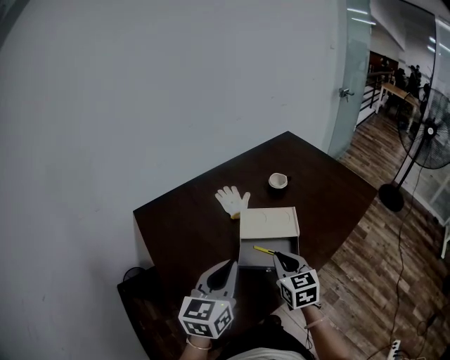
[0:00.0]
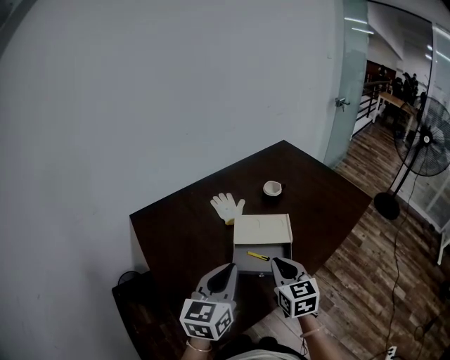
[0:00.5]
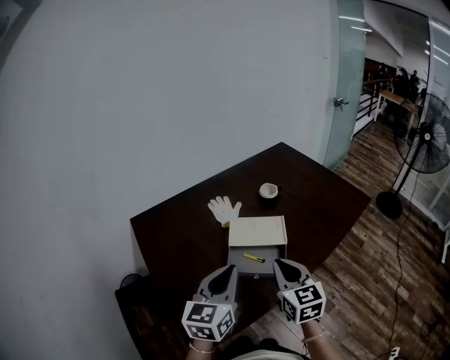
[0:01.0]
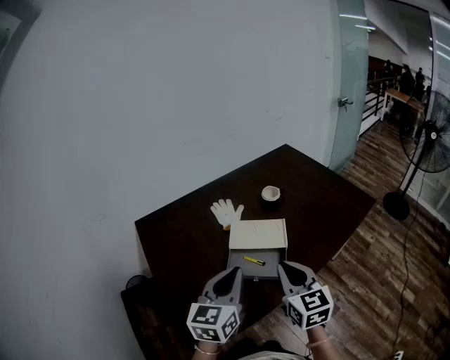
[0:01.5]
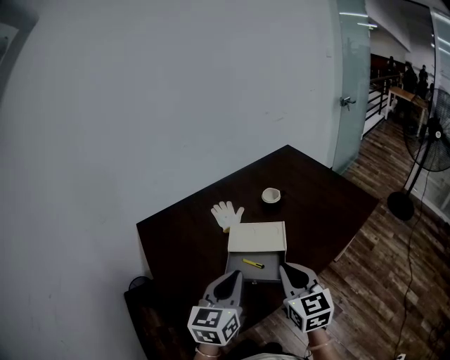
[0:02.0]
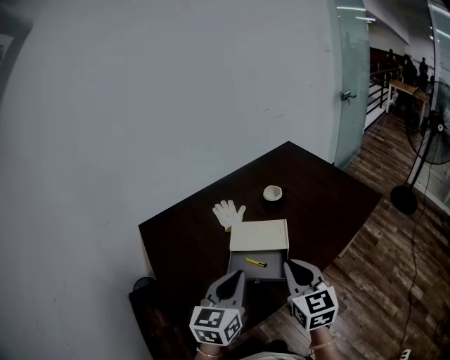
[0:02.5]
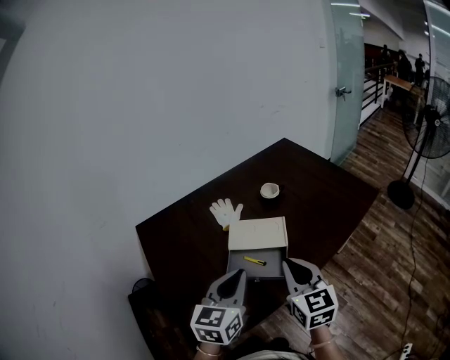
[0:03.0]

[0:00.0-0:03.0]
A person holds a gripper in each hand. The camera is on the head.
0:00.0 to 0:01.5: The left gripper moves to the right, approximately 10 cm. Meanwhile the right gripper moves upward, to the right and backward, about 15 cm.
0:01.5 to 0:03.0: The grippers move only a little.

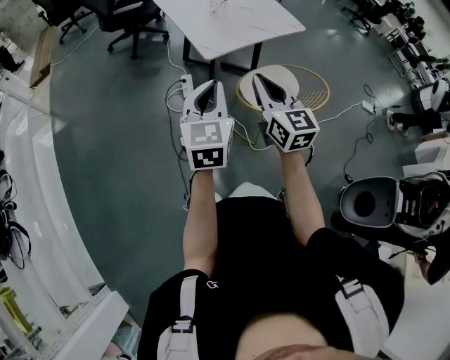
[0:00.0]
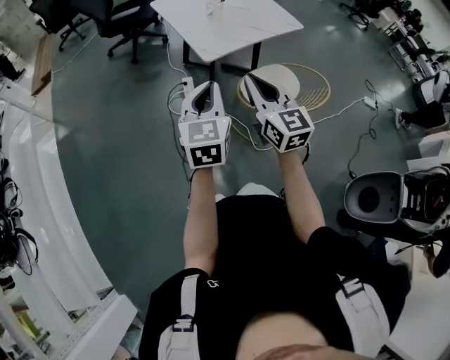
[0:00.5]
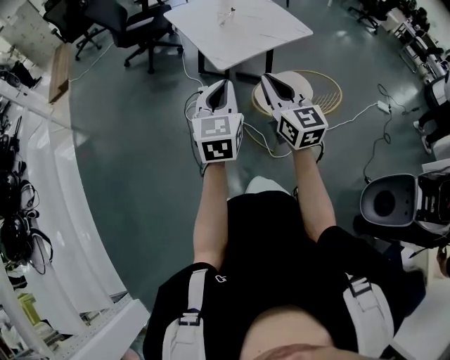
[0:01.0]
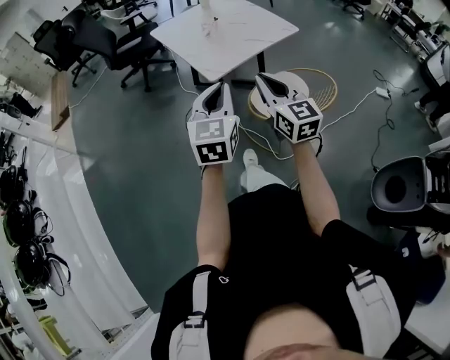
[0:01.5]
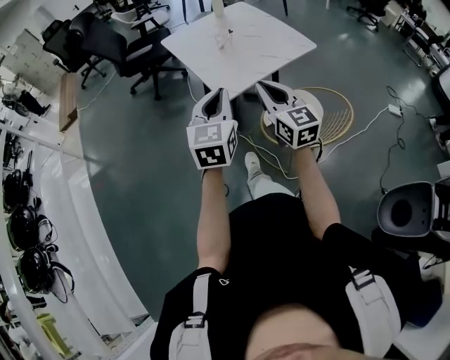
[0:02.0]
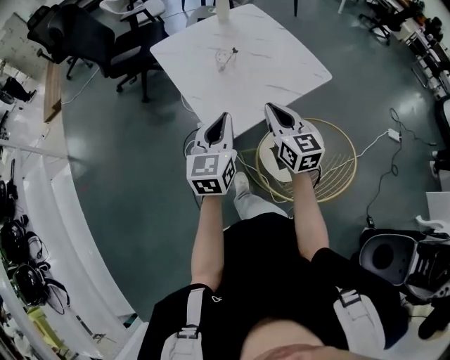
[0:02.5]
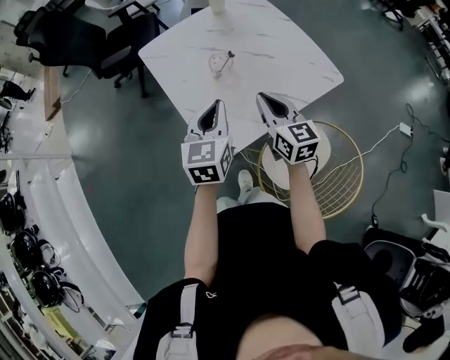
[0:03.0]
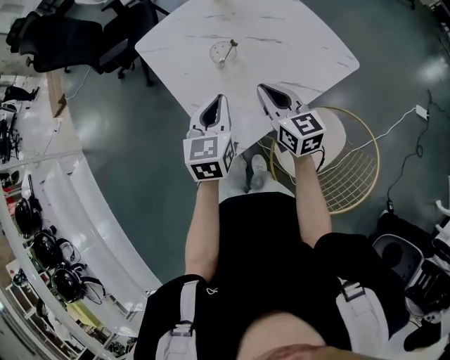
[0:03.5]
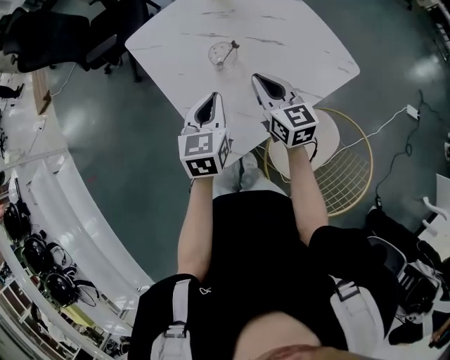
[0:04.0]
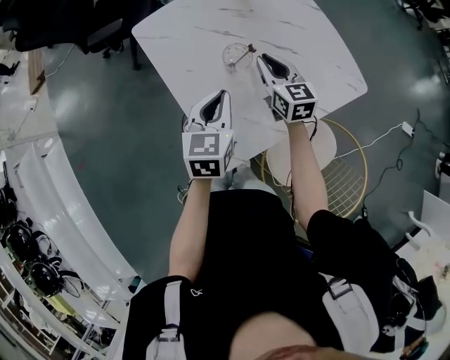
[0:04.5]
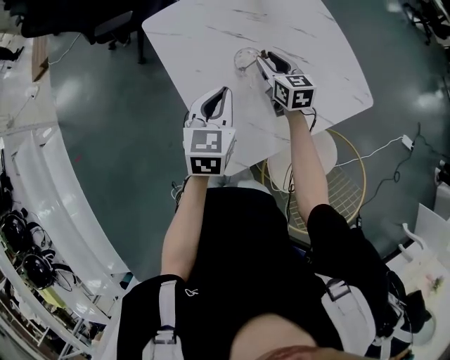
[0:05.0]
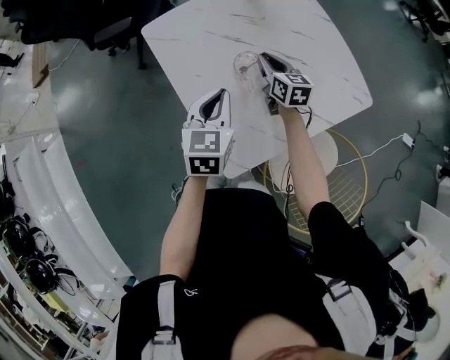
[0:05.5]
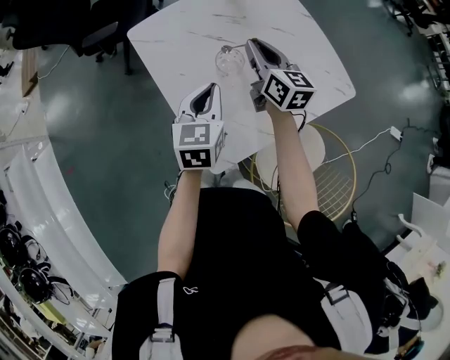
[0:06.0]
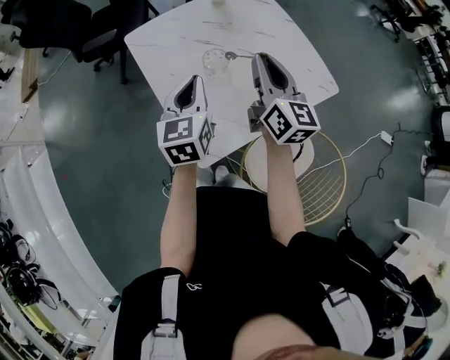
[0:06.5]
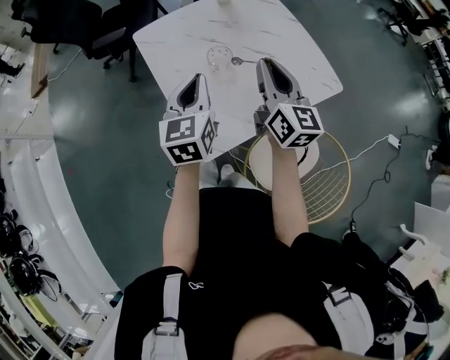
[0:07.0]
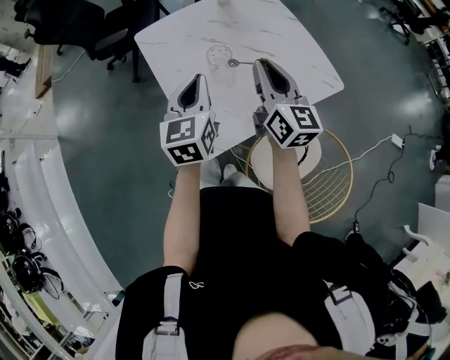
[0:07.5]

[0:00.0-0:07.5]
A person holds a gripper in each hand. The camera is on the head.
0:00.0 to 0:02.0: Both grippers travel together forward, about 15 cm.
0:02.0 to 0:04.0: The right gripper shifts roughly 40 cm forward, while the left gripper heads forward and downward, covering some 40 cm, and changes its angle by roughly 20 degrees.
0:04.0 to 0:05.5: The right gripper goes some 20 cm forward and downward, and opens, then closes again. Meanwhile the left gripper travels forward by about 5 cm.
0:05.5 to 0:07.5: The left gripper travels upward and backward by approximately 10 cm. Meanwhile the right gripper travels upward and backward by some 30 cm, and swivels about 30 degrees.

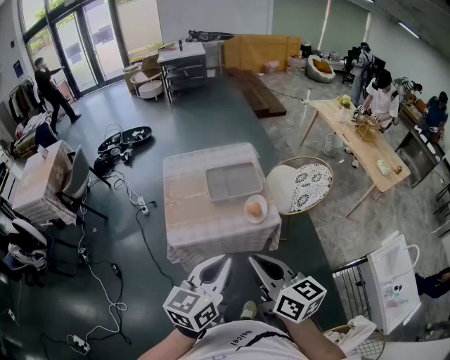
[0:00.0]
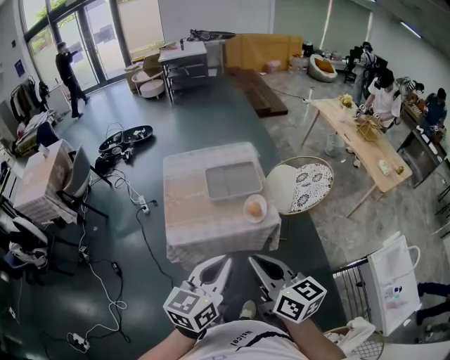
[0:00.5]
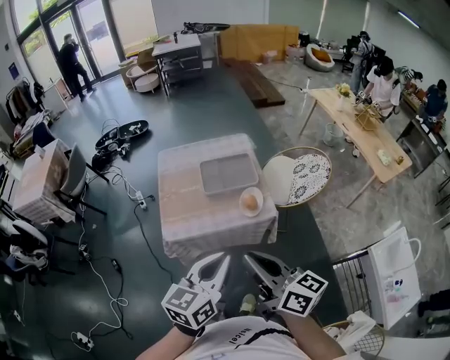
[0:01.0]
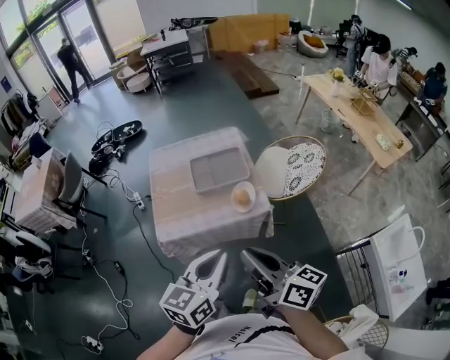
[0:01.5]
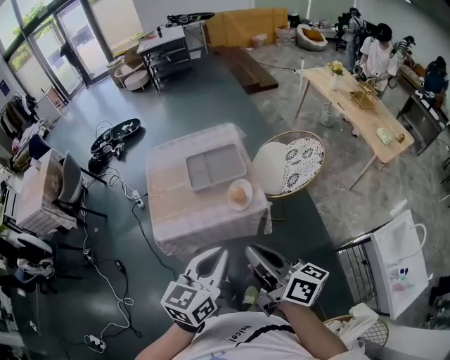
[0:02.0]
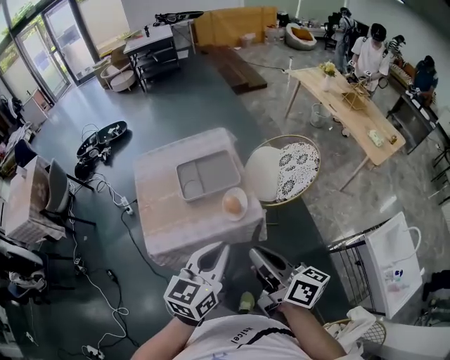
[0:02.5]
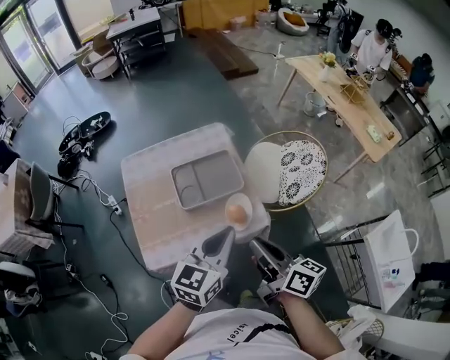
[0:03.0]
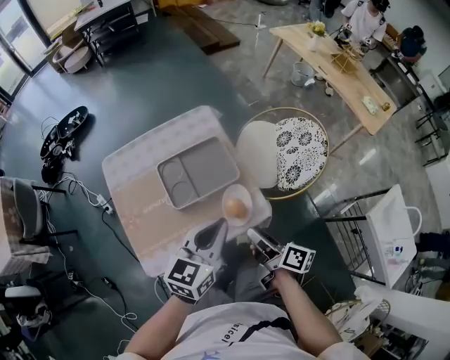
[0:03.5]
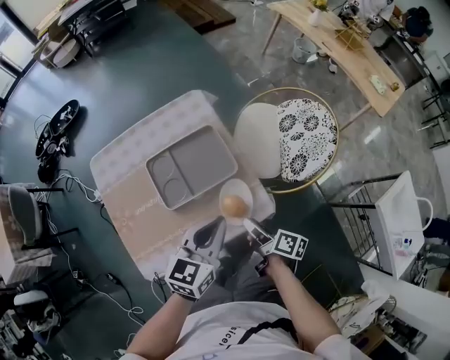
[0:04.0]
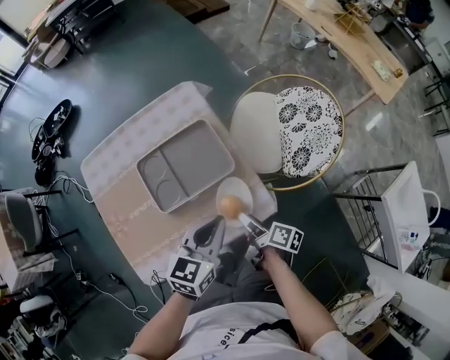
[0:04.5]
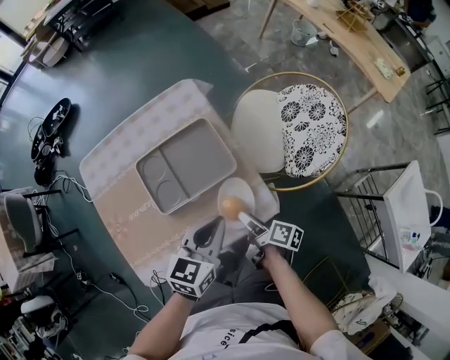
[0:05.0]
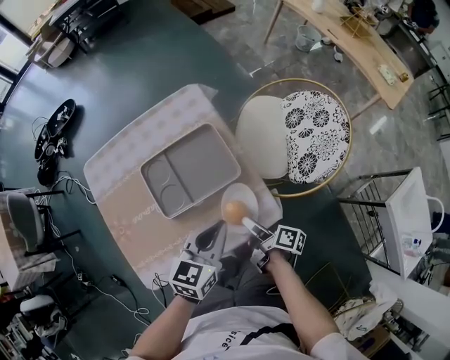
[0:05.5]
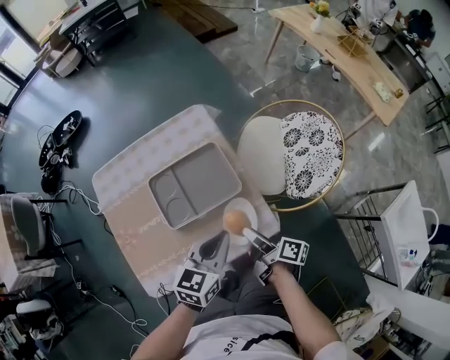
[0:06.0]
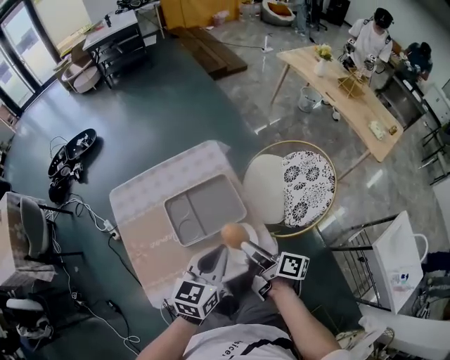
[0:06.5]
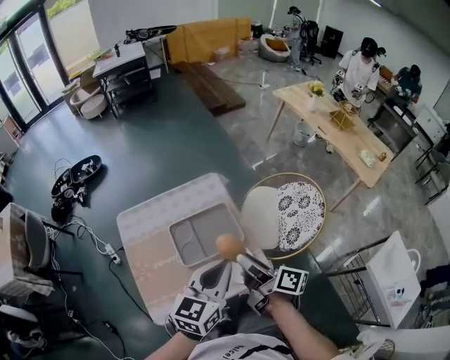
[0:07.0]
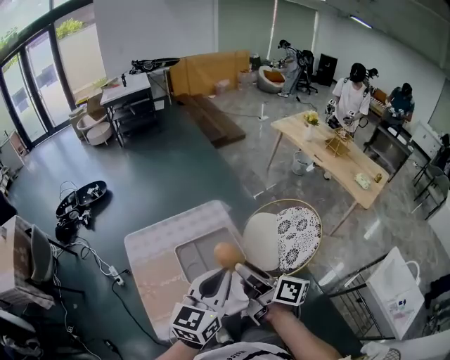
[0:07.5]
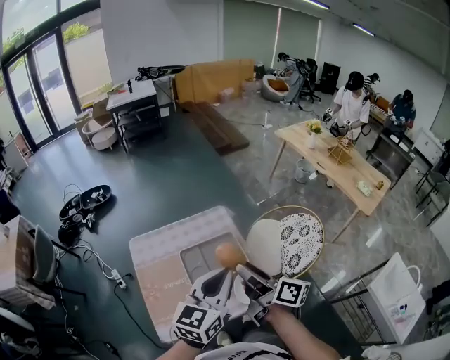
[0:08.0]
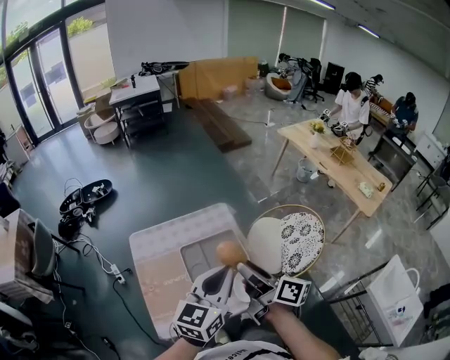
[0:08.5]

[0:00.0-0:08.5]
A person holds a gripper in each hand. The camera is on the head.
0:00.0 to 0:02.0: Both grippers travel together to the right, approximately 10 cm. The right gripper swivels about 30 degrees.
0:02.0 to 0:04.0: The right gripper goes about 40 cm downward and forward, swivels approximately 40 degrees, and opens. Meanwhile the left gripper shifts about 35 cm forward and downward.
0:04.0 to 0:06.5: The right gripper heads upward and forward, covering approximately 10 cm. Meanwhile the left gripper changes place by approximately 5 cm.
0:06.5 to 0:08.5: Both grippers move upward, some 20 cm. The right gripper rotates some 20 degrees.

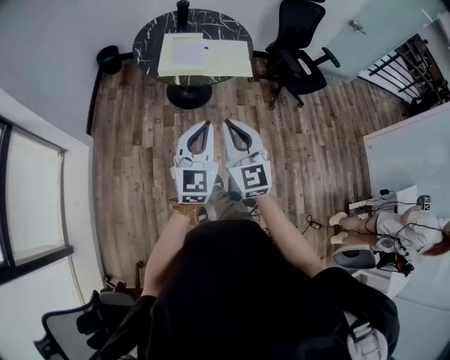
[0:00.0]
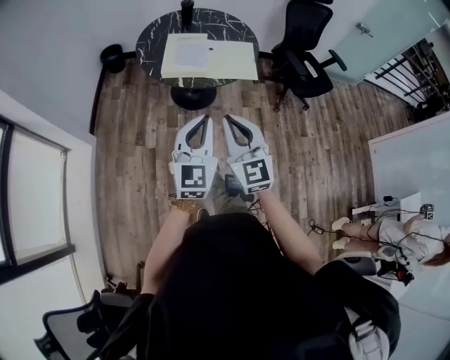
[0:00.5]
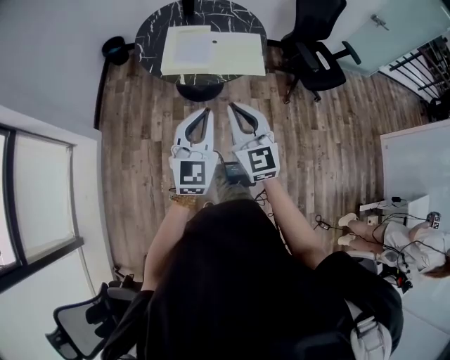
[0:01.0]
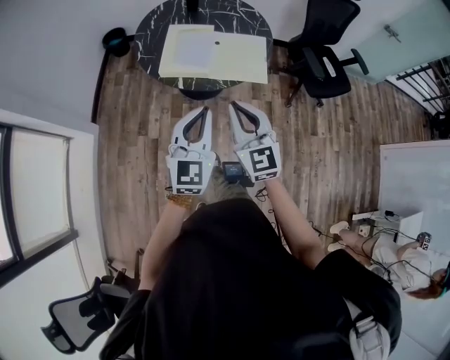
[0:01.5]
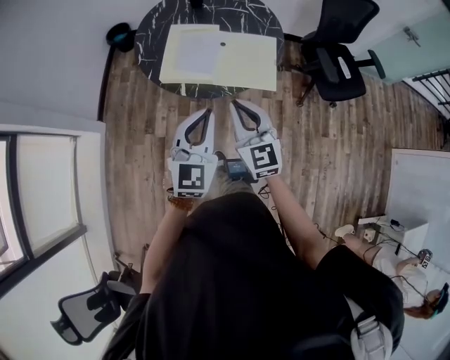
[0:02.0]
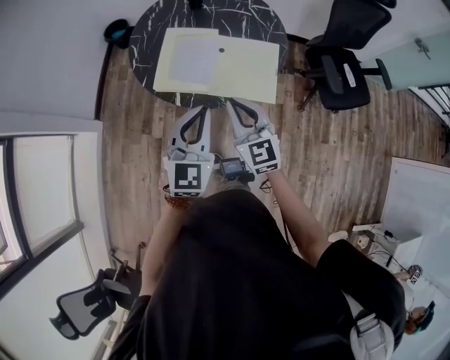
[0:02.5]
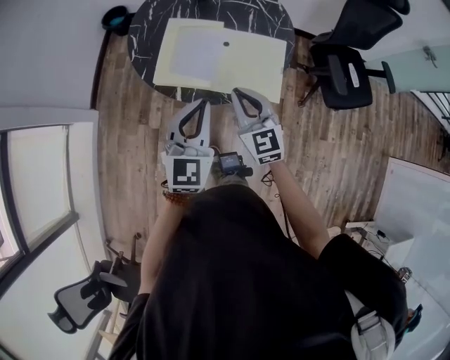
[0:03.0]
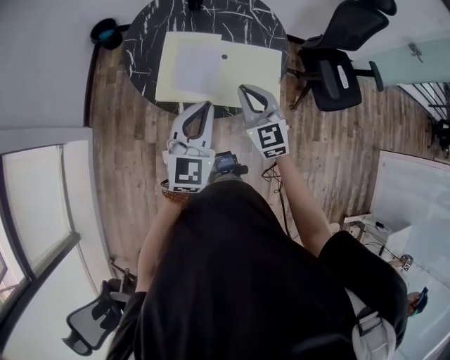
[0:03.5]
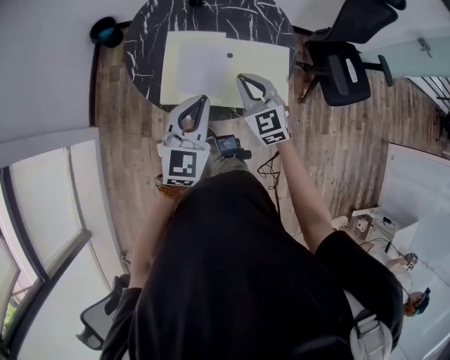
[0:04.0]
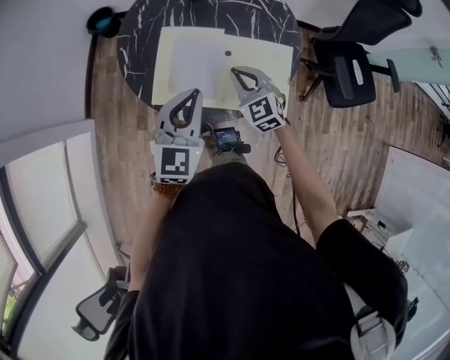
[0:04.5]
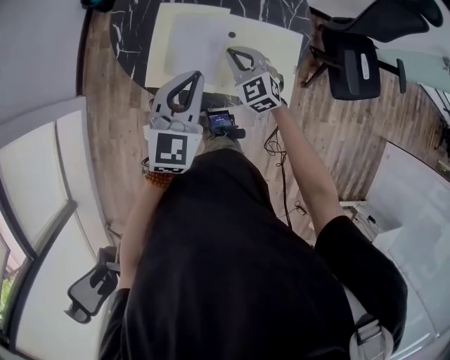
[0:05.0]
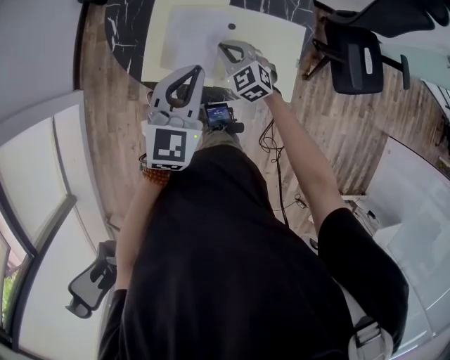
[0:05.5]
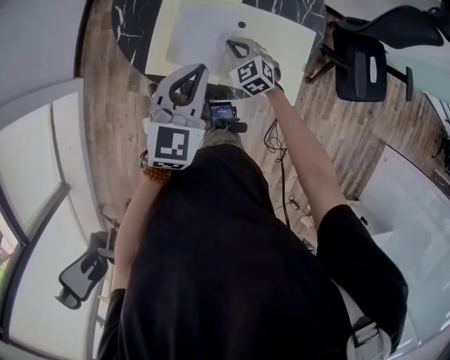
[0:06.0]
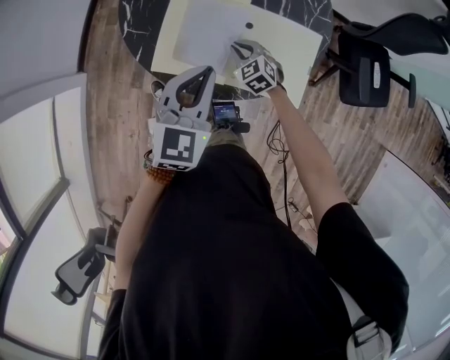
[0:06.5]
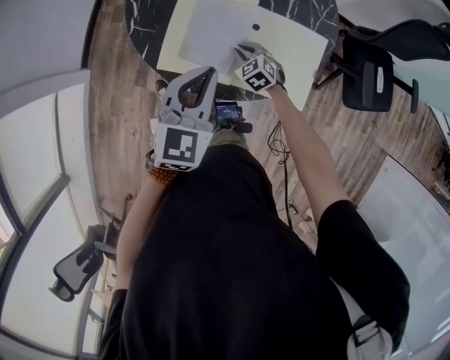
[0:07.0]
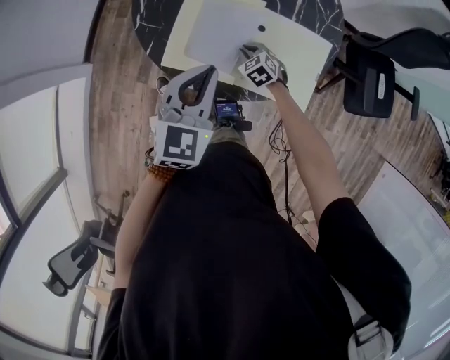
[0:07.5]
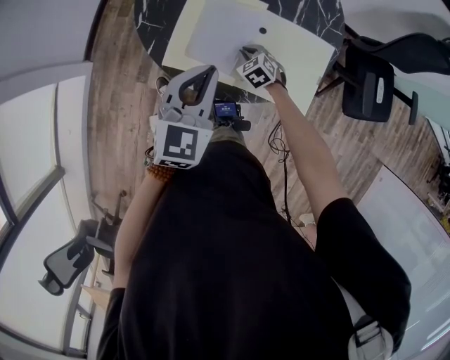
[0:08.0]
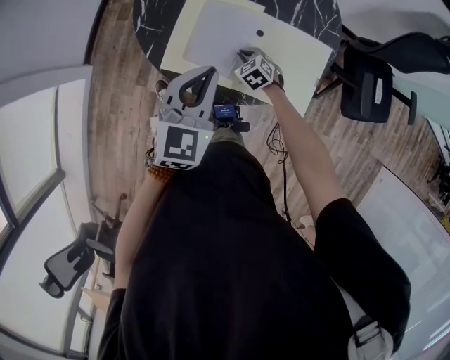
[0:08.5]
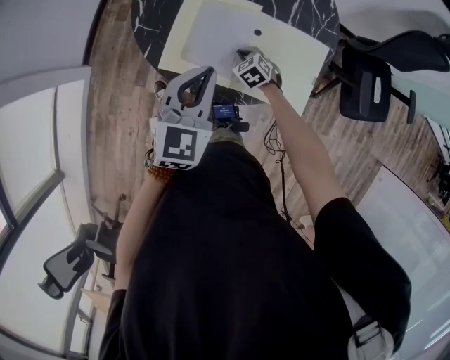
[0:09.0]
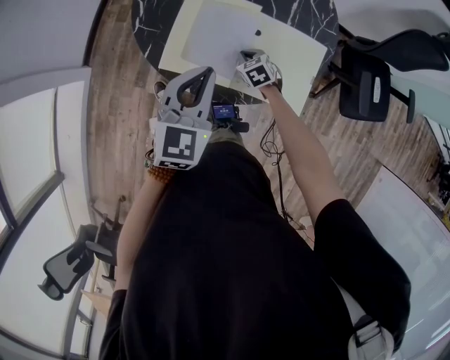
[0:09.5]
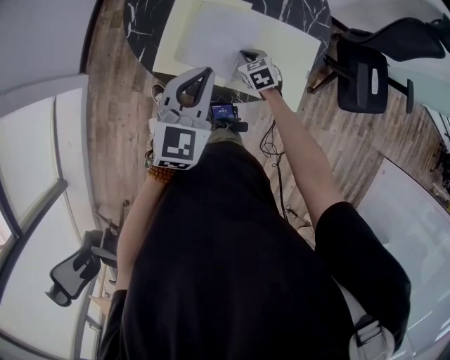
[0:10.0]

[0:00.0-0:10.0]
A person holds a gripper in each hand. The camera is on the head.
0:00.0 to 0:02.0: Both grippers move forward, some 30 cm.
0:02.0 to 0:04.0: The two grippers go approximately 25 cm forward.
0:04.0 to 0:06.0: The right gripper shifts some 25 cm downward and forward, and changes its angle by about 30 degrees. Meanwhile the left gripper is displaced downward and forward by approximately 10 cm.
0:06.0 to 0:08.0: The right gripper is displaced downward by about 10 cm.
0:08.0 to 0:10.0: The grippers make only small movements.
